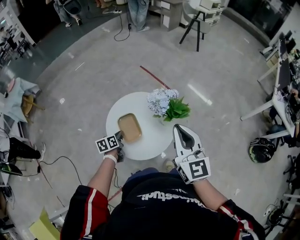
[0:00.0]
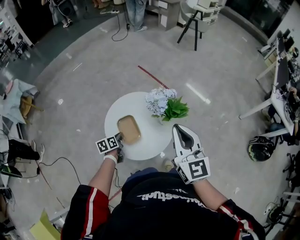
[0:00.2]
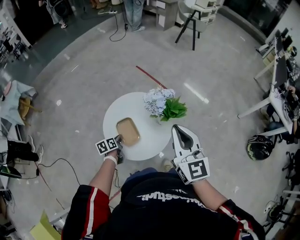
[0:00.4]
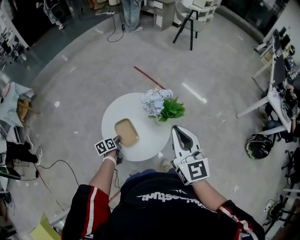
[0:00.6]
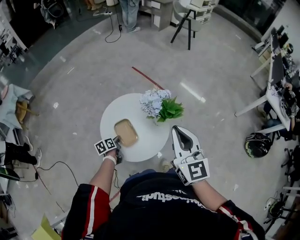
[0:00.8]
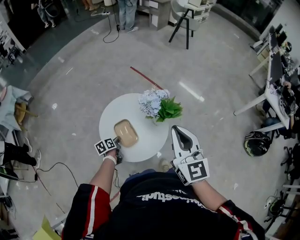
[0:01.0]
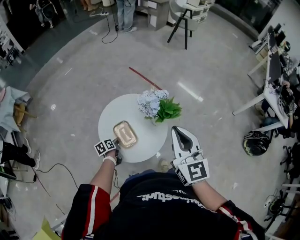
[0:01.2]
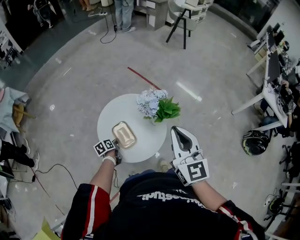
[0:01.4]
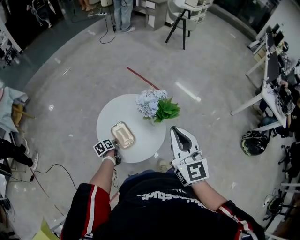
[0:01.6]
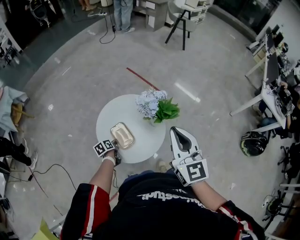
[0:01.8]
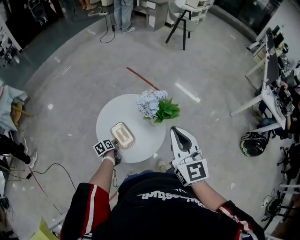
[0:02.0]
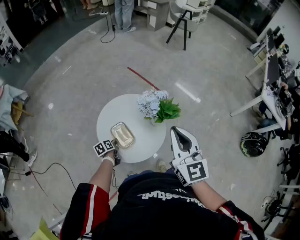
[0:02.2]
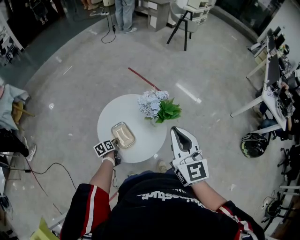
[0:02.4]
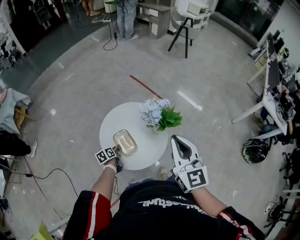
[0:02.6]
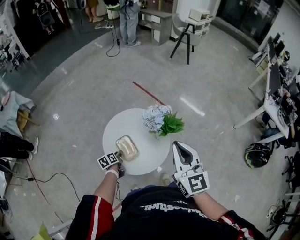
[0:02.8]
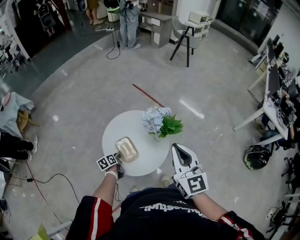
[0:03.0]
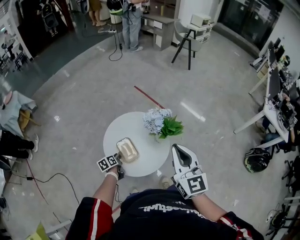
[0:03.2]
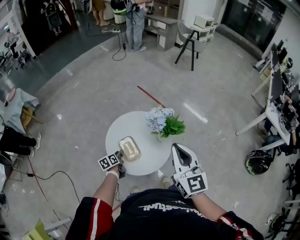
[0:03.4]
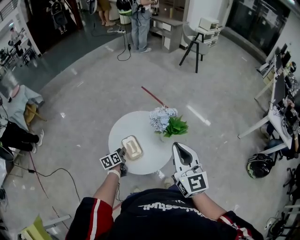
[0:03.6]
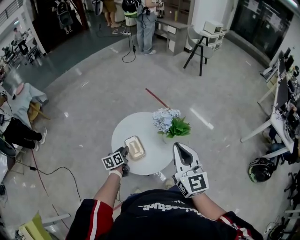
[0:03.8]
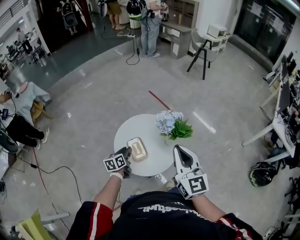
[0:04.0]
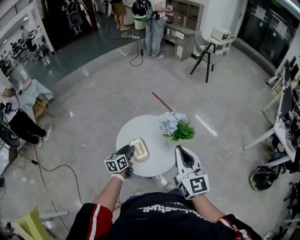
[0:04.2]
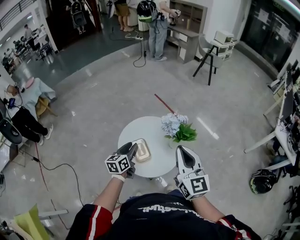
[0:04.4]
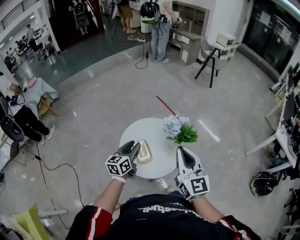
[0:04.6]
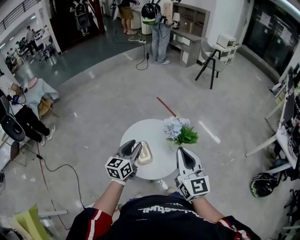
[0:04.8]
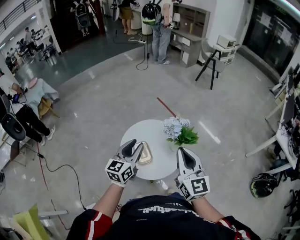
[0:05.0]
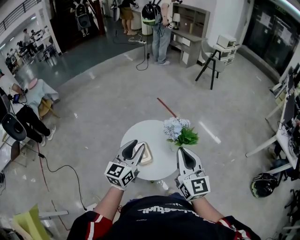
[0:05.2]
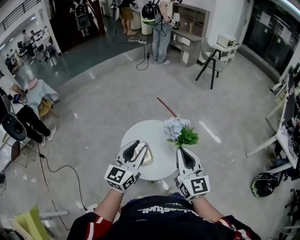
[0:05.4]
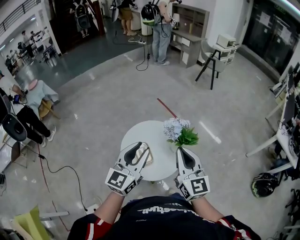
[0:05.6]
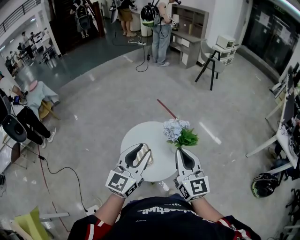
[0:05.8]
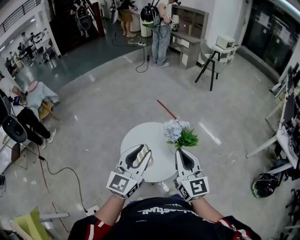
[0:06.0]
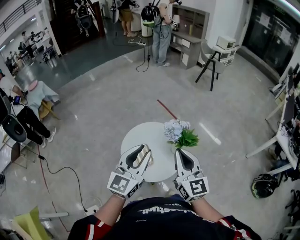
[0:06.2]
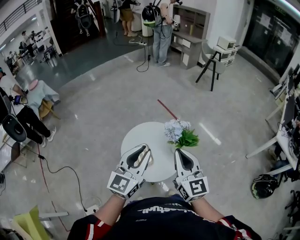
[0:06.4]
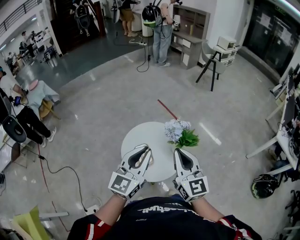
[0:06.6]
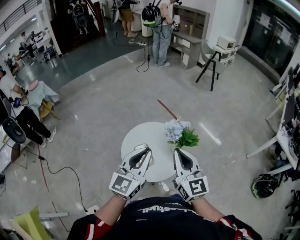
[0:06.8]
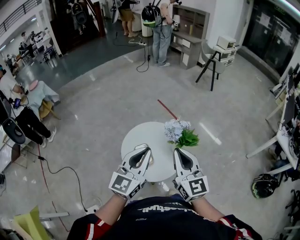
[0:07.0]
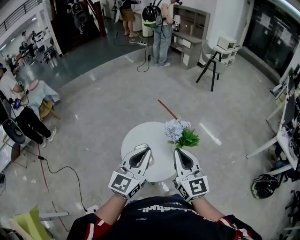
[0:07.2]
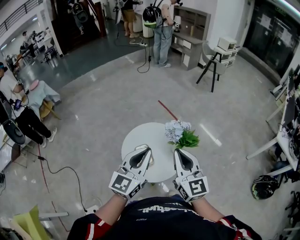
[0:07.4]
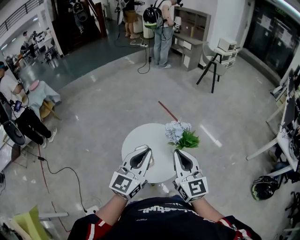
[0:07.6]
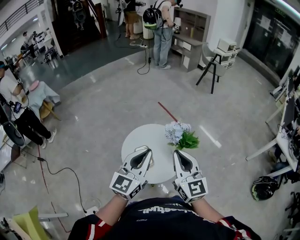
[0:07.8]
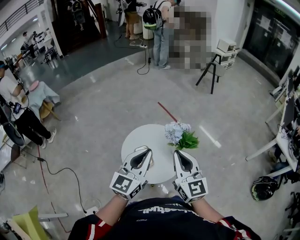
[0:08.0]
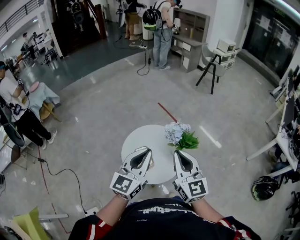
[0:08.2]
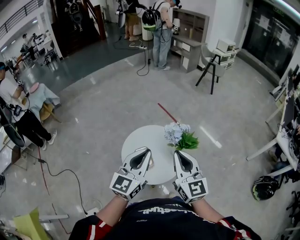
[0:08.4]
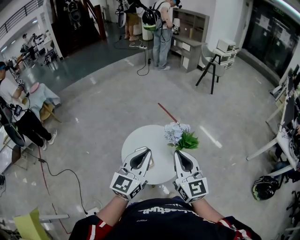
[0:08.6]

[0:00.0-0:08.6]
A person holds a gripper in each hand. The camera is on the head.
0:00.0 to 0:01.4: The left gripper shifts roughly 10 cm downward.
0:01.4 to 0:02.8: The grippers stay close to where they were, moving slightly.
0:02.8 to 0:04.4: The left gripper is displaced upward by approximately 20 cm, and turns by approximately 30 degrees.
0:04.4 to 0:05.8: The left gripper travels upward by approximately 20 cm, and swivels some 40 degrees.
0:05.8 to 0:07.2: The left gripper closes up.
0:07.2 to 0:08.6: Both grippers stay put.

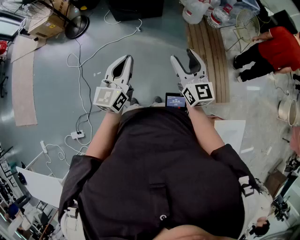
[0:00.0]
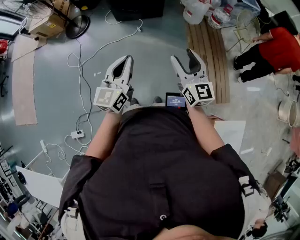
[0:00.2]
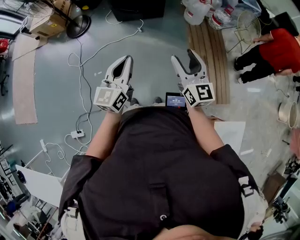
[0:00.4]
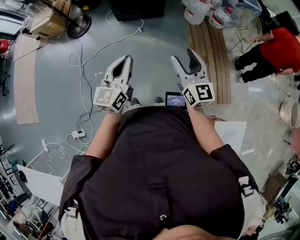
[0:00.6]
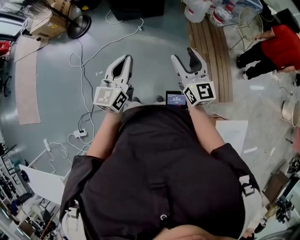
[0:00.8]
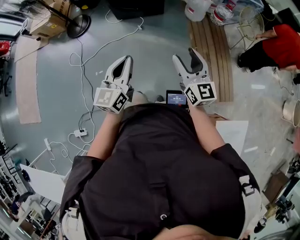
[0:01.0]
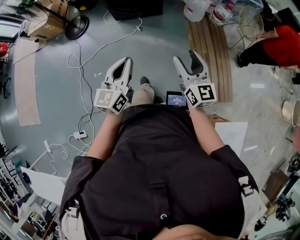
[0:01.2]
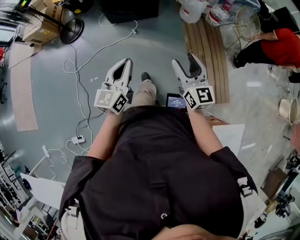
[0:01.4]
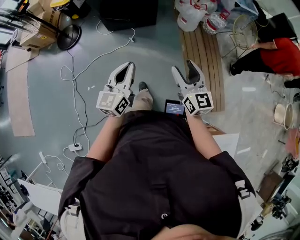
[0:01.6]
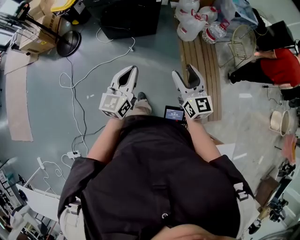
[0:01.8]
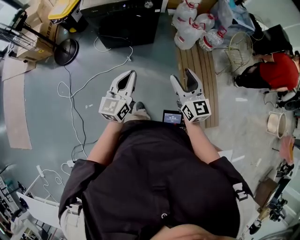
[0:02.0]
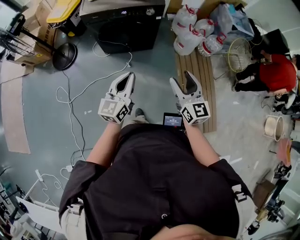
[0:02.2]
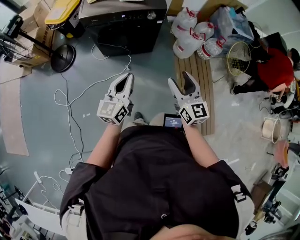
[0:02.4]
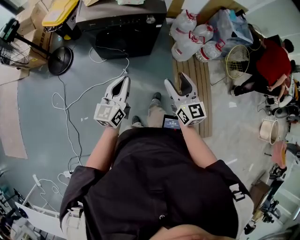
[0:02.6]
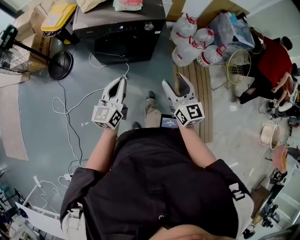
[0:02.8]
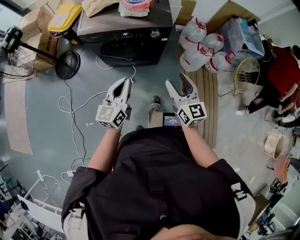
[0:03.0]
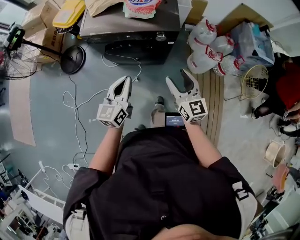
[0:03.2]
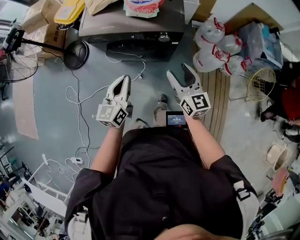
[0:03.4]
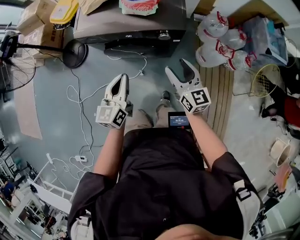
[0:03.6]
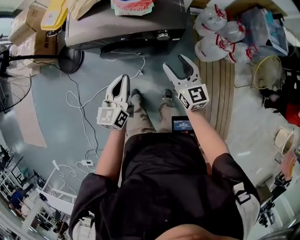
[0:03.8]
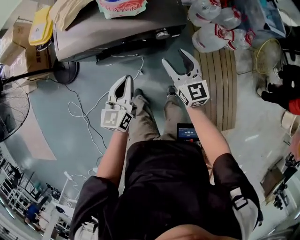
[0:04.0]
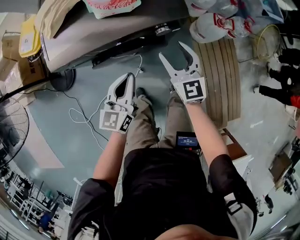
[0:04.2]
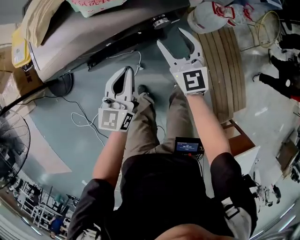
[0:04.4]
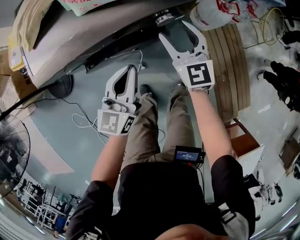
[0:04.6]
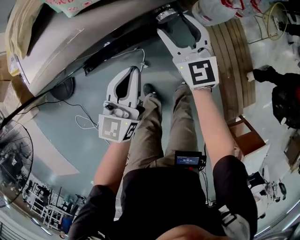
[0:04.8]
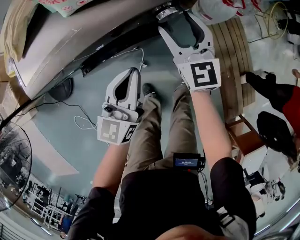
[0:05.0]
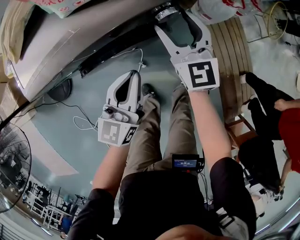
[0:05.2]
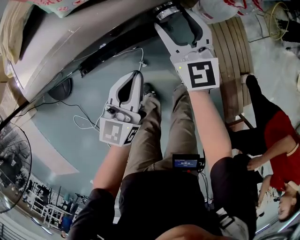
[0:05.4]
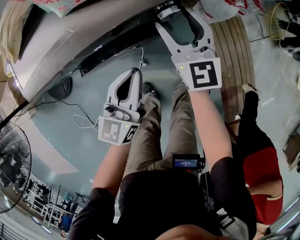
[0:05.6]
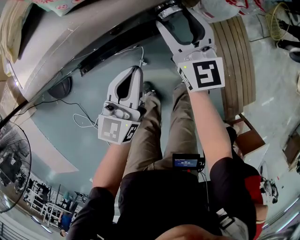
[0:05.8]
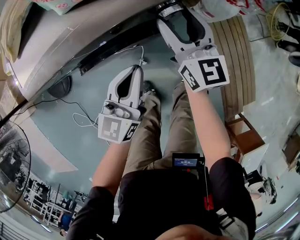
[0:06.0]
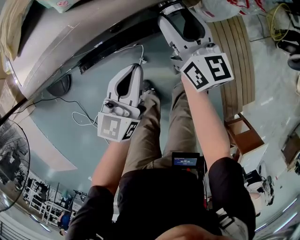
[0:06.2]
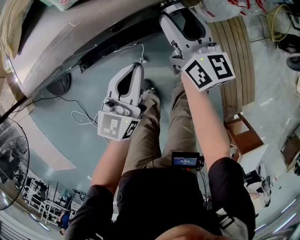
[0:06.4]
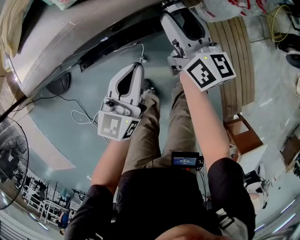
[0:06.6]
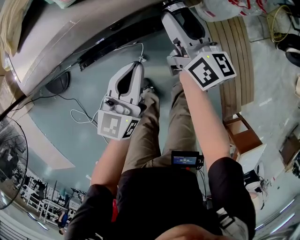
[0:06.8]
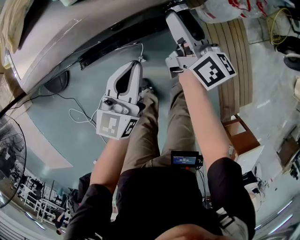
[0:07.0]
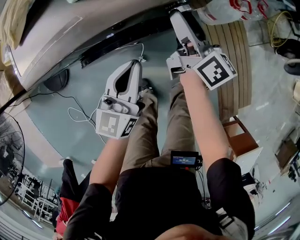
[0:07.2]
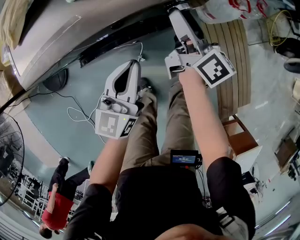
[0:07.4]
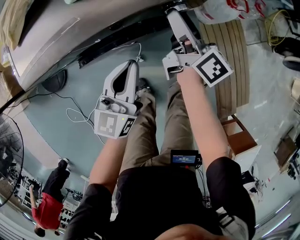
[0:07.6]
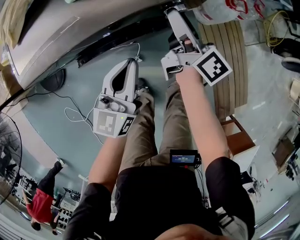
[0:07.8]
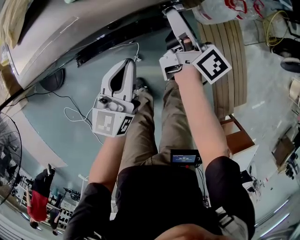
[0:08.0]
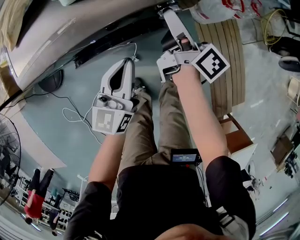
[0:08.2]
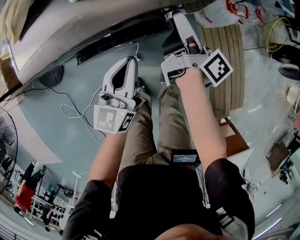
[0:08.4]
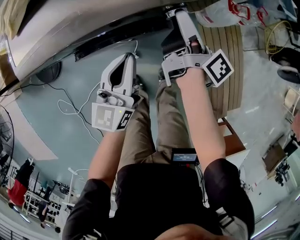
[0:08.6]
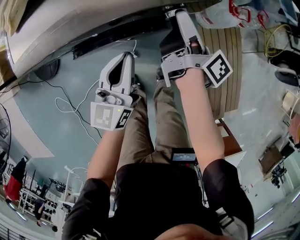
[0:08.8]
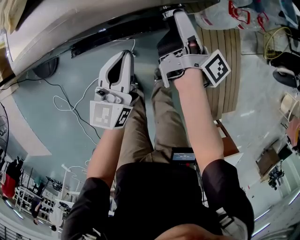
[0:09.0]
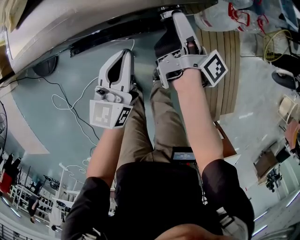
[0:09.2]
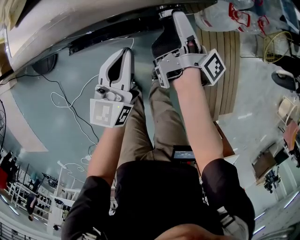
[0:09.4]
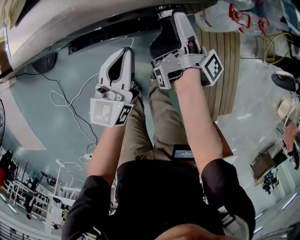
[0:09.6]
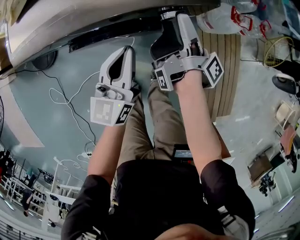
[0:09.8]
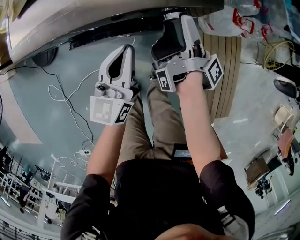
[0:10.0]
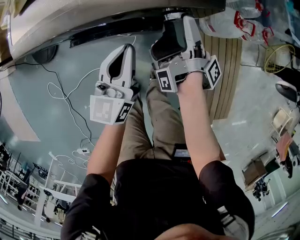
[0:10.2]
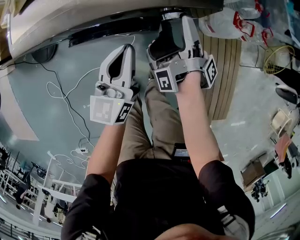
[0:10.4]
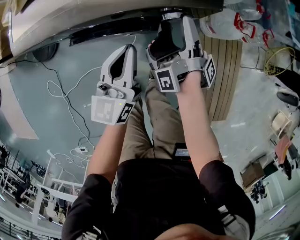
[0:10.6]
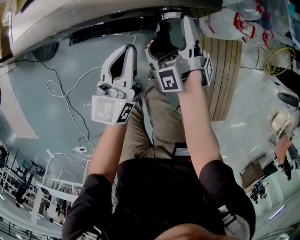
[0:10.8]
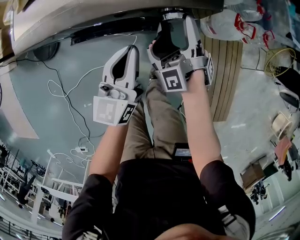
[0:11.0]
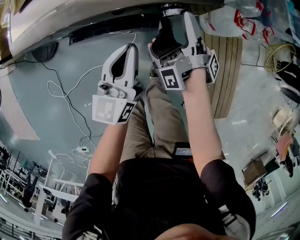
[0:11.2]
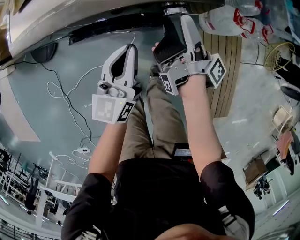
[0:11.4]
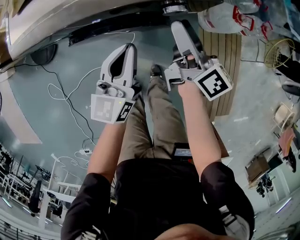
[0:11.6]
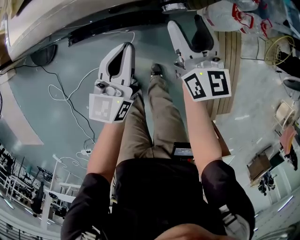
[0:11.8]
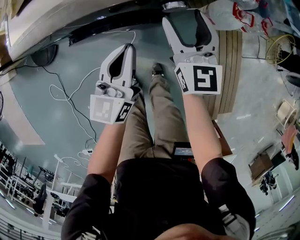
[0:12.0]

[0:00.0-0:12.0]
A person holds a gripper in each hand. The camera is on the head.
0:00.0 to 0:01.6: Both grippers travel together forward, about 15 cm.
0:01.6 to 0:03.0: The grippers both shift forward by some 40 cm.
0:03.0 to 0:04.4: The grippers both shift forward and downward by approximately 30 cm. The right gripper swivels about 20 degrees.
0:04.4 to 0:06.0: The left gripper moves downward, about 5 cm; the right gripper moves forward, some 5 cm, and changes its angle by about 20 degrees.
0:06.0 to 0:07.6: The right gripper twists about 50 degrees clockwise, seen from behind.
0:07.6 to 0:09.0: The right gripper changes its angle by roughly 40 degrees.
0:09.0 to 0:10.4: The right gripper swivels about 30 degrees.
0:10.4 to 0:12.0: The right gripper rotates around the line of its fingers by roughly 120 degrees, counterclockwise from behind.

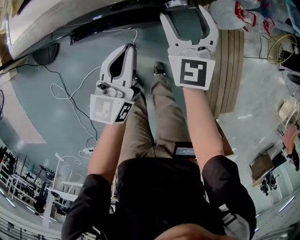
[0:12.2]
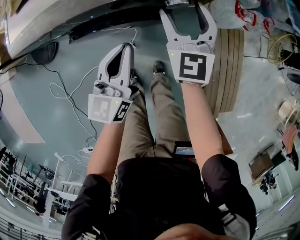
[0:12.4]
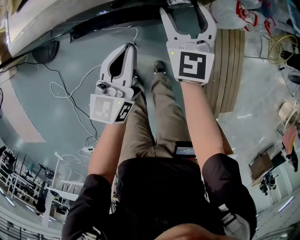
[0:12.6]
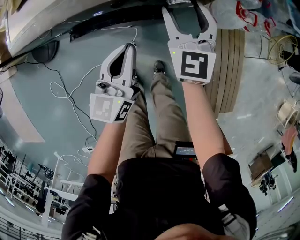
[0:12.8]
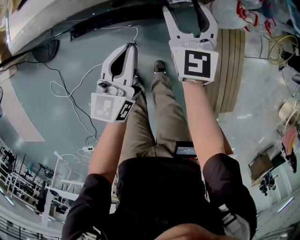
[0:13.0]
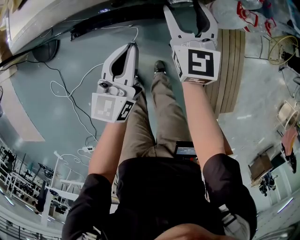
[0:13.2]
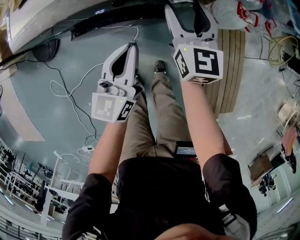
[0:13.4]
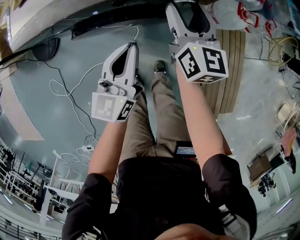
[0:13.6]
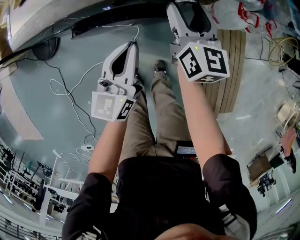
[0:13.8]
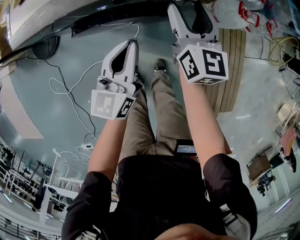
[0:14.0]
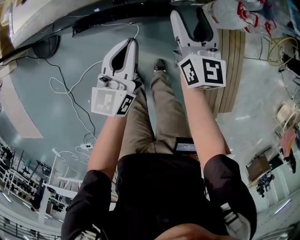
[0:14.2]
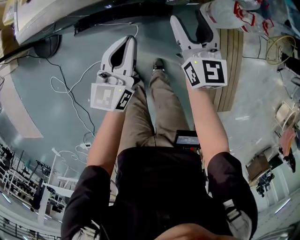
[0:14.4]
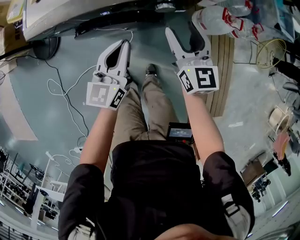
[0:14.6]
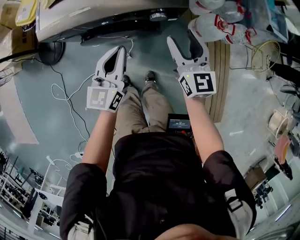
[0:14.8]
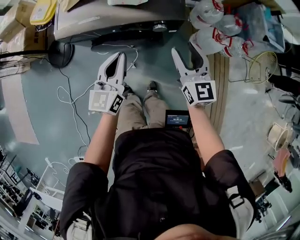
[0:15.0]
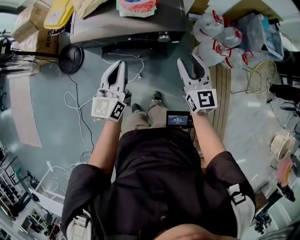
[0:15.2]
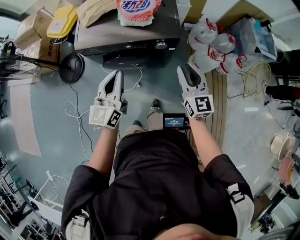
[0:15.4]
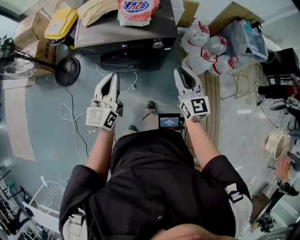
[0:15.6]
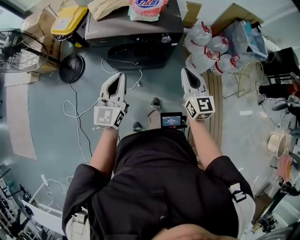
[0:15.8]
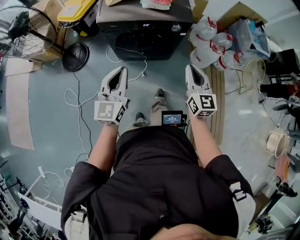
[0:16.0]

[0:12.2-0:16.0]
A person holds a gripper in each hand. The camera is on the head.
0:12.2 to 0:13.4: The right gripper turns by some 20 degrees.
0:13.4 to 0:14.8: The left gripper shifts some 10 cm upward. Meanwhile the right gripper moves upward, backward and to the right, roughly 15 cm.
0:14.8 to 0:16.0: The left gripper heads backward, upward and to the left, covering approximately 30 cm. The right gripper travels backward and upward by some 25 cm, and closes its fingers.
